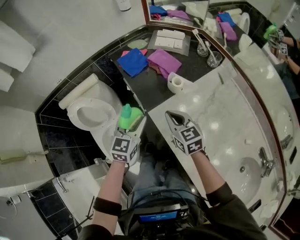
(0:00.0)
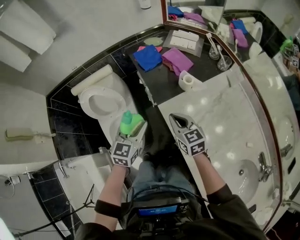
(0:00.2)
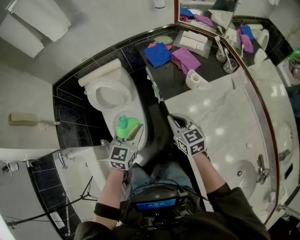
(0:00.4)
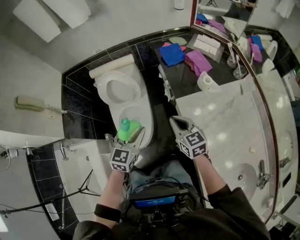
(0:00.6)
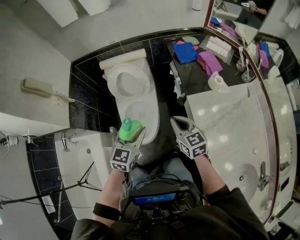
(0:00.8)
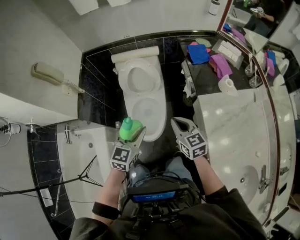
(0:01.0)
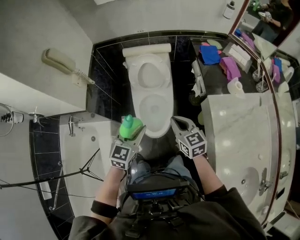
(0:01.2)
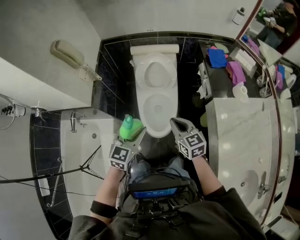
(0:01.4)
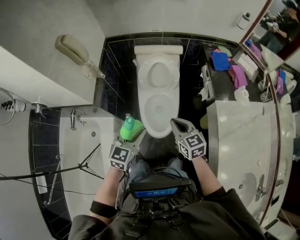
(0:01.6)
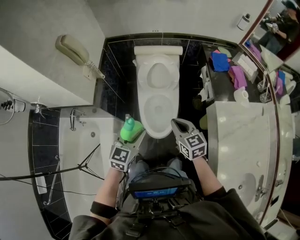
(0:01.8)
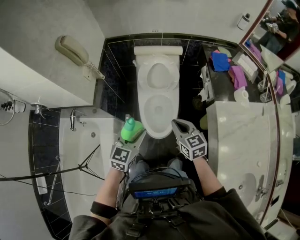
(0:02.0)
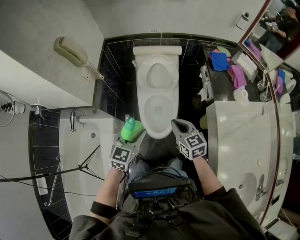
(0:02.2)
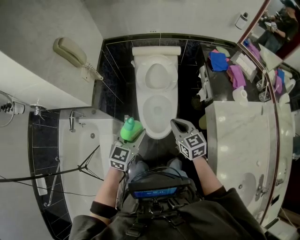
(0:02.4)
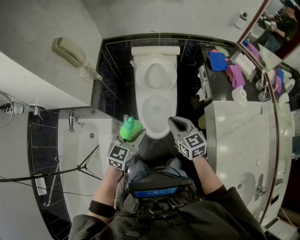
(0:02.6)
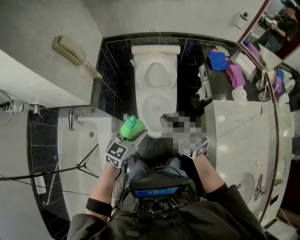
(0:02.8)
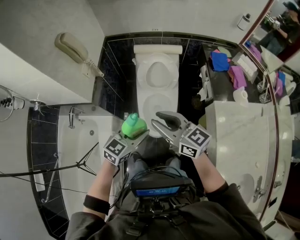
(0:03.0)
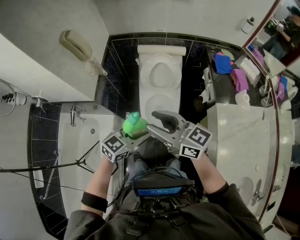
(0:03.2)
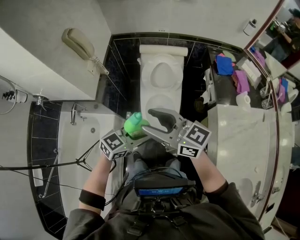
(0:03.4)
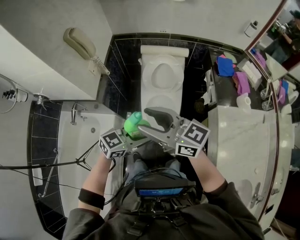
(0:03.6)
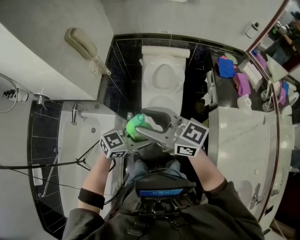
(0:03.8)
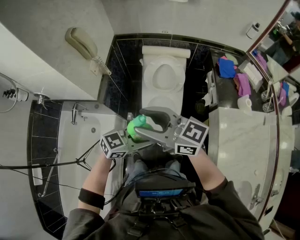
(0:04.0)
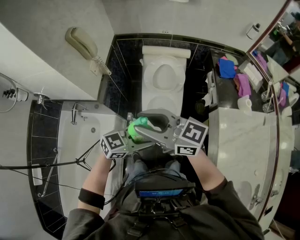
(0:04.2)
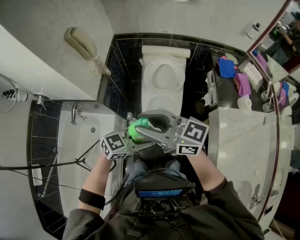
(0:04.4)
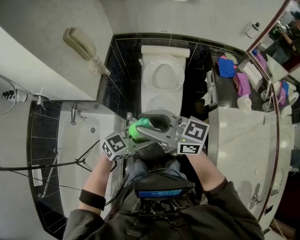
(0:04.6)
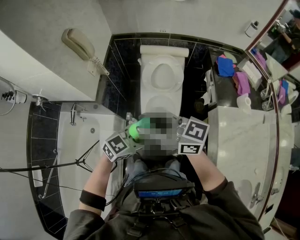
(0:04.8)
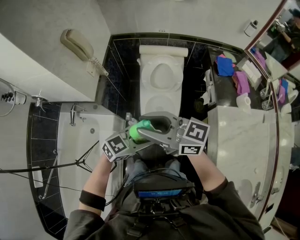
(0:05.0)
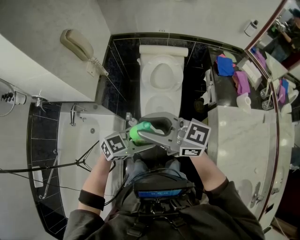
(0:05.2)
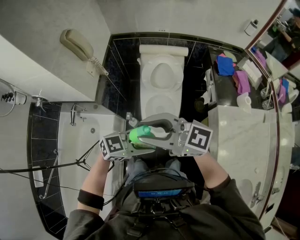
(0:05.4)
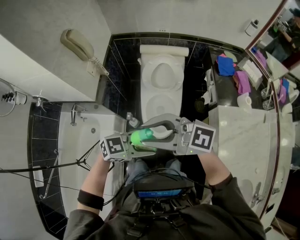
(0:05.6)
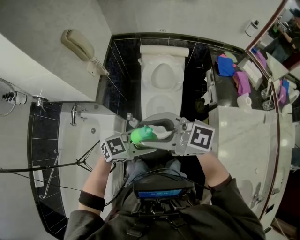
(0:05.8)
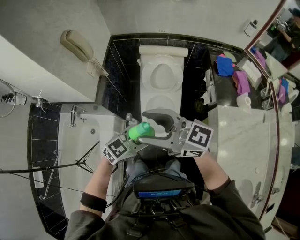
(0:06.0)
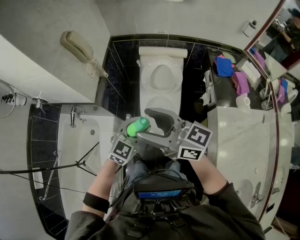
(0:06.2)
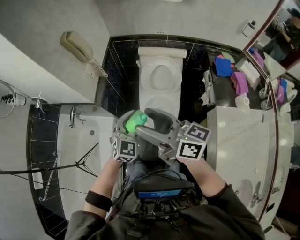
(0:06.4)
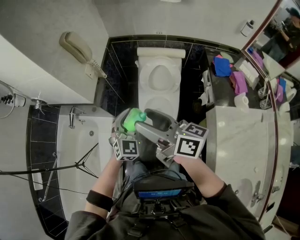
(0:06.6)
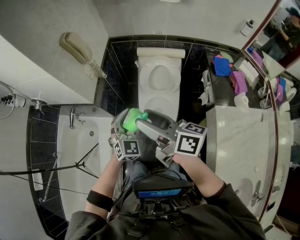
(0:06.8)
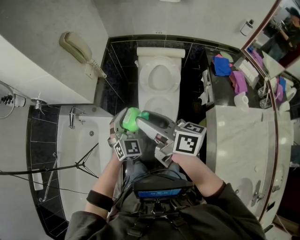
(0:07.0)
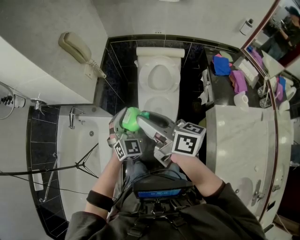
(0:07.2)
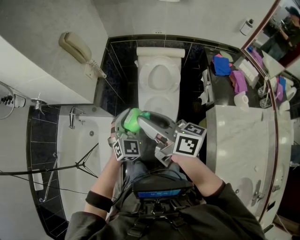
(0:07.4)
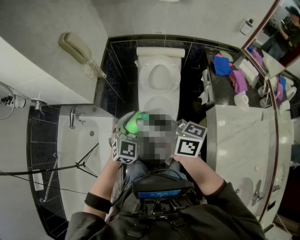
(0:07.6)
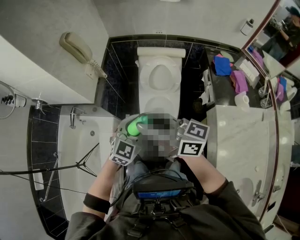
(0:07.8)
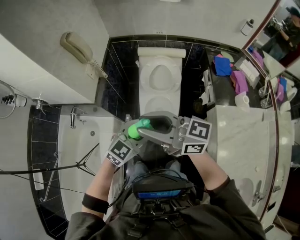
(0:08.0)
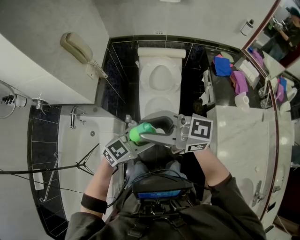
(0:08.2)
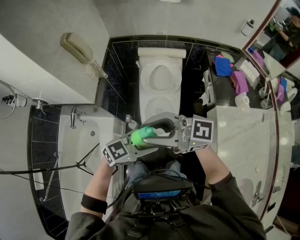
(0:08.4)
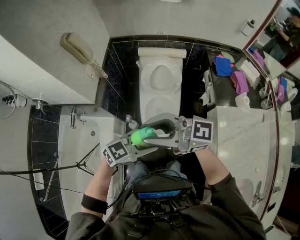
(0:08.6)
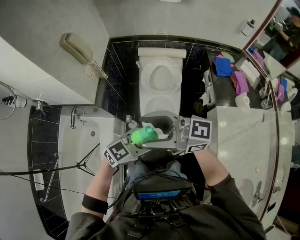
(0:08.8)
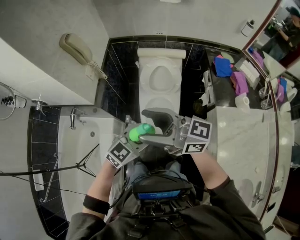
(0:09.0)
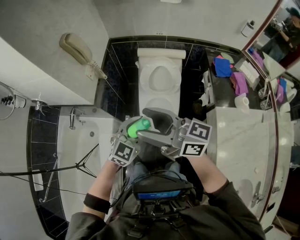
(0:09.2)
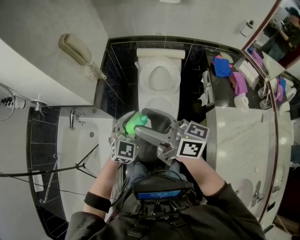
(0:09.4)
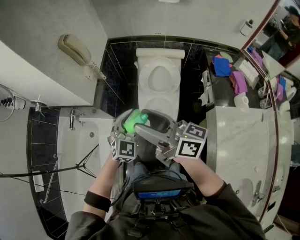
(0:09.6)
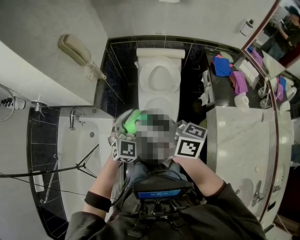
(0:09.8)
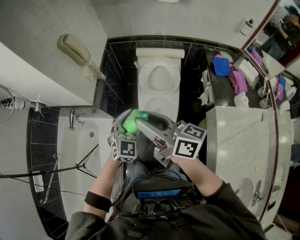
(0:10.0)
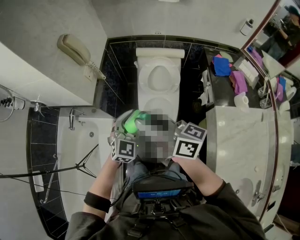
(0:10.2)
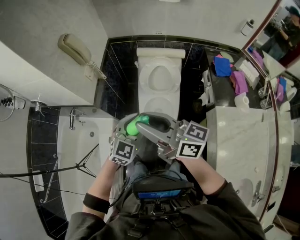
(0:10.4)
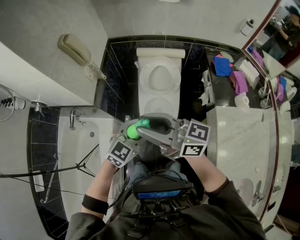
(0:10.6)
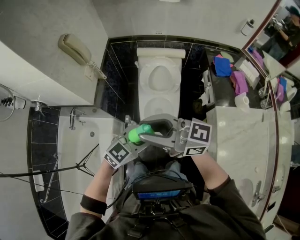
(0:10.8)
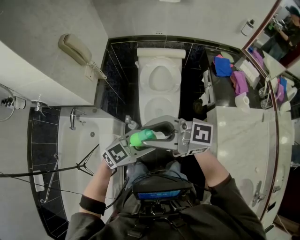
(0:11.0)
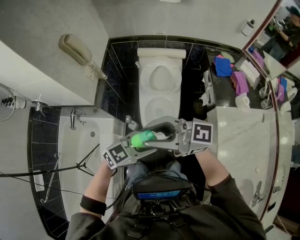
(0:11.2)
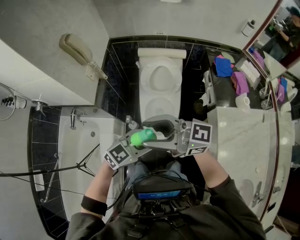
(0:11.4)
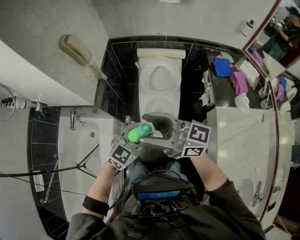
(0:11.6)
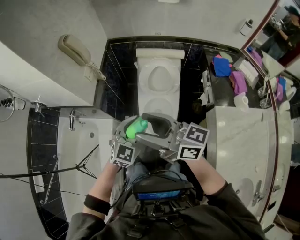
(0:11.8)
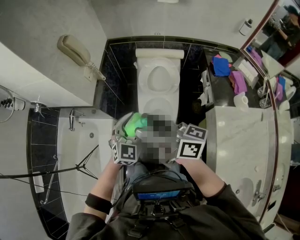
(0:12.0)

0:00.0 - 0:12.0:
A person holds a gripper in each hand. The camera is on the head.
0:00.0 - 0:01.6: The pair of grippers is taken approximately 50 cm. The right gripper rotates approximately 30 degrees; the left gripper rotates about 30 degrees.
0:01.6 - 0:03.0: The right gripper shifts some 15 cm upward and to the left, changes its angle by roughly 30 degrees, and opens its fingers.
0:03.0 - 0:04.4: The left gripper changes its angle by roughly 20 degrees; the right gripper moves roughly 10 cm, and changes its angle by some 20 degrees.
0:04.4 - 0:06.0: The right gripper opens its fingers.
0:06.0 - 0:07.6: The right gripper turns by some 30 degrees, and closes up. Meanwhile the left gripper shifts by roughly 10 cm, and turns by about 40 degrees.
0:07.6 - 0:09.0: The right gripper rotates some 20 degrees, and opens, while the left gripper changes its angle by about 30 degrees.
0:09.0 - 0:10.4: The left gripper turns by about 20 degrees, while the right gripper closes.
0:10.4 - 0:12.0: The right gripper opens its fingers.

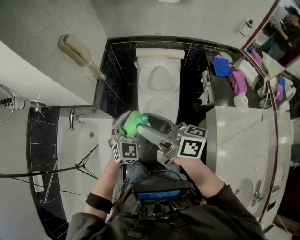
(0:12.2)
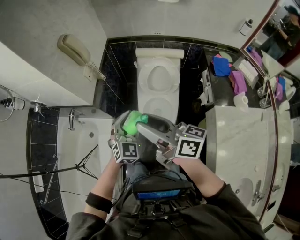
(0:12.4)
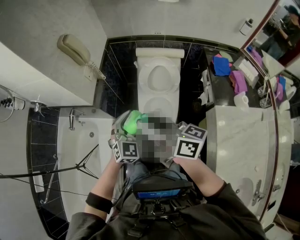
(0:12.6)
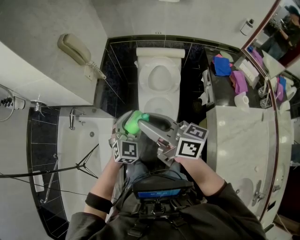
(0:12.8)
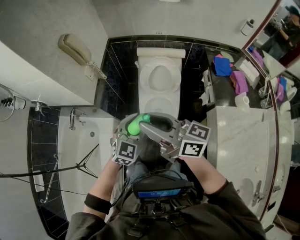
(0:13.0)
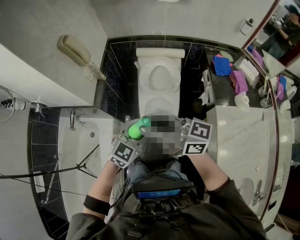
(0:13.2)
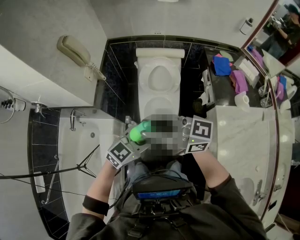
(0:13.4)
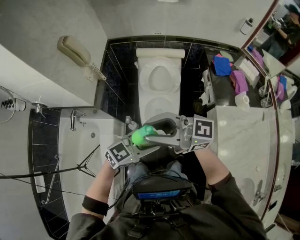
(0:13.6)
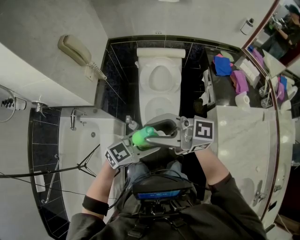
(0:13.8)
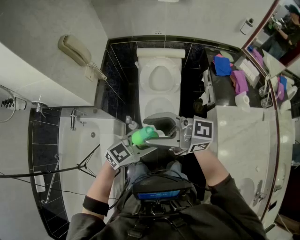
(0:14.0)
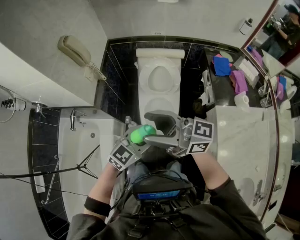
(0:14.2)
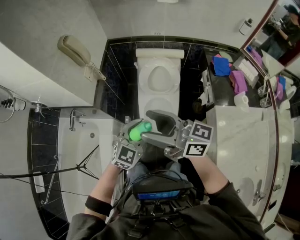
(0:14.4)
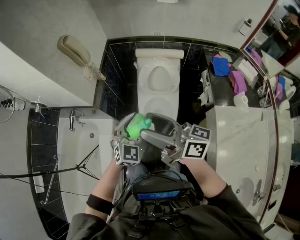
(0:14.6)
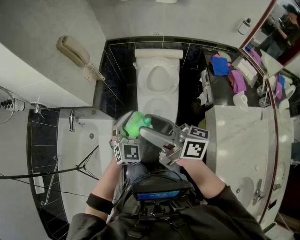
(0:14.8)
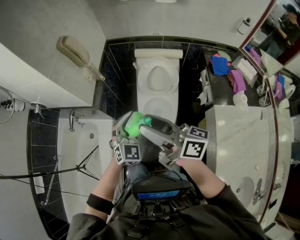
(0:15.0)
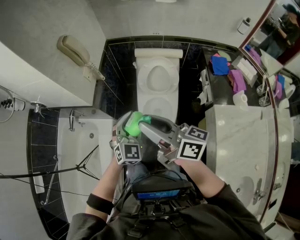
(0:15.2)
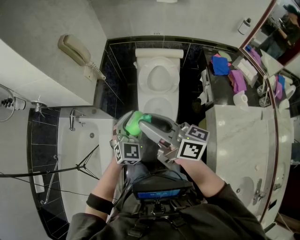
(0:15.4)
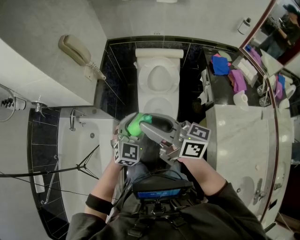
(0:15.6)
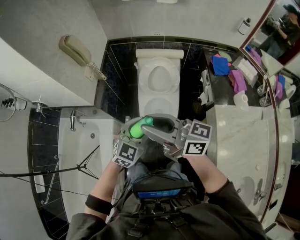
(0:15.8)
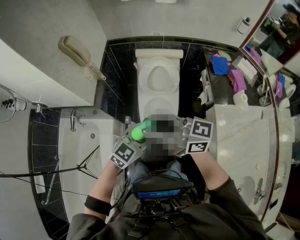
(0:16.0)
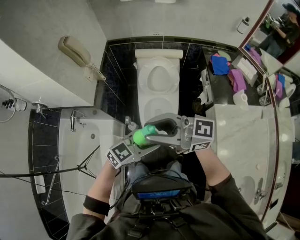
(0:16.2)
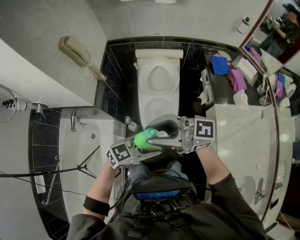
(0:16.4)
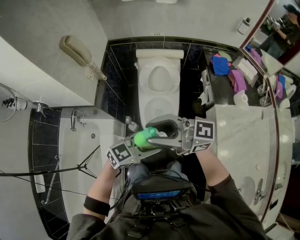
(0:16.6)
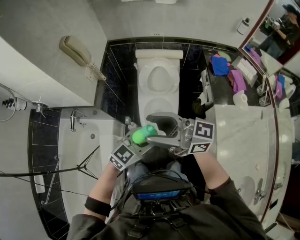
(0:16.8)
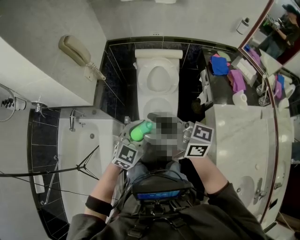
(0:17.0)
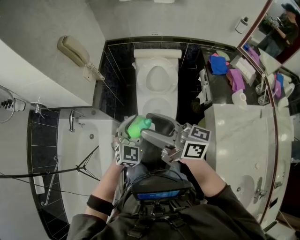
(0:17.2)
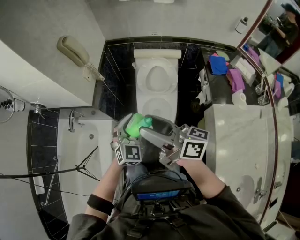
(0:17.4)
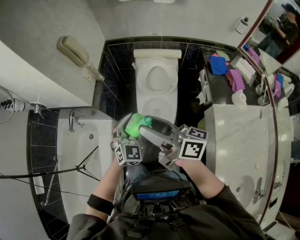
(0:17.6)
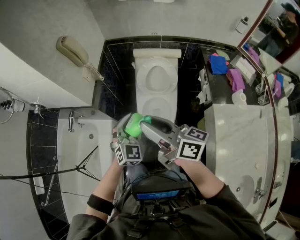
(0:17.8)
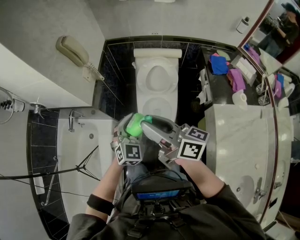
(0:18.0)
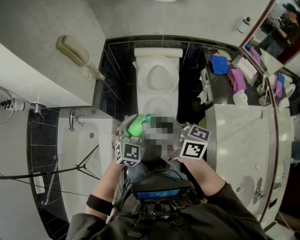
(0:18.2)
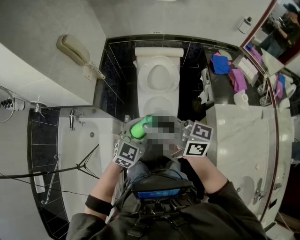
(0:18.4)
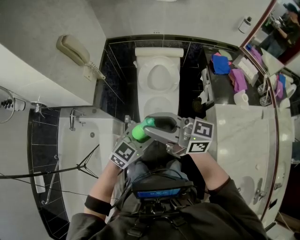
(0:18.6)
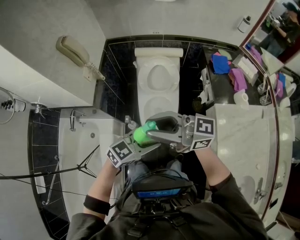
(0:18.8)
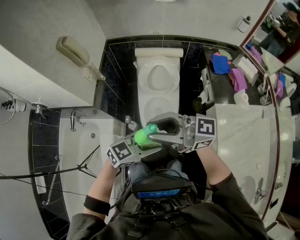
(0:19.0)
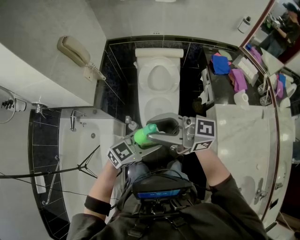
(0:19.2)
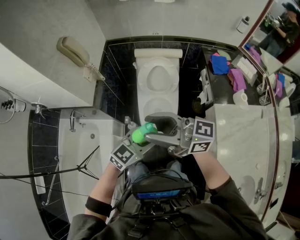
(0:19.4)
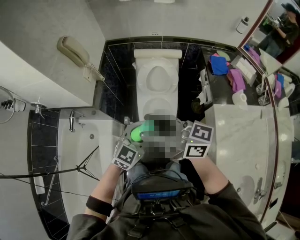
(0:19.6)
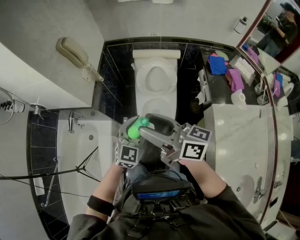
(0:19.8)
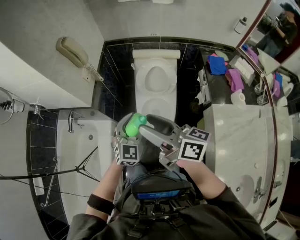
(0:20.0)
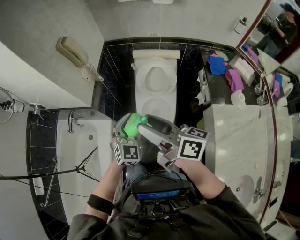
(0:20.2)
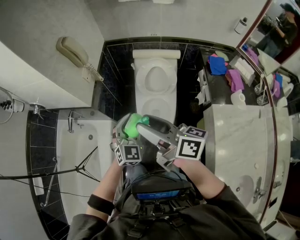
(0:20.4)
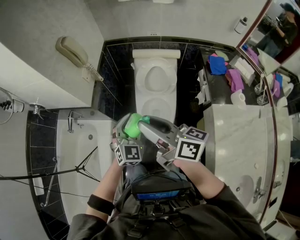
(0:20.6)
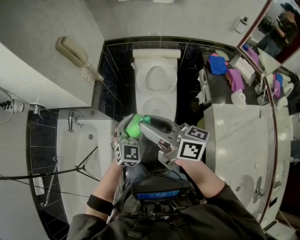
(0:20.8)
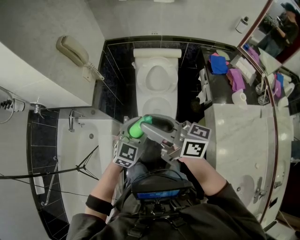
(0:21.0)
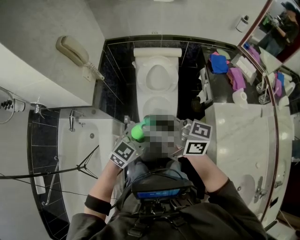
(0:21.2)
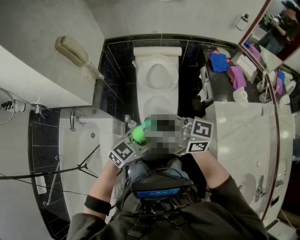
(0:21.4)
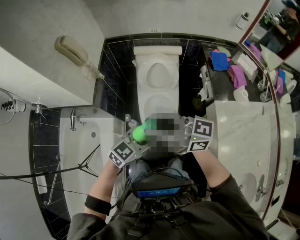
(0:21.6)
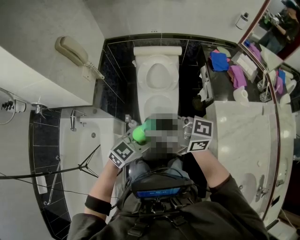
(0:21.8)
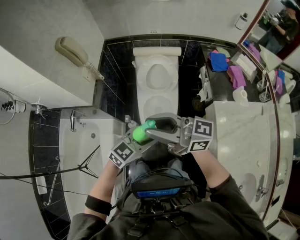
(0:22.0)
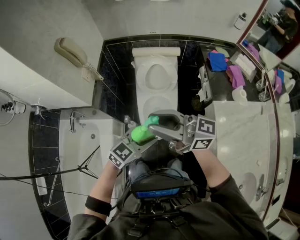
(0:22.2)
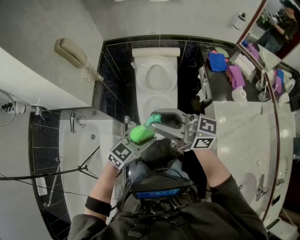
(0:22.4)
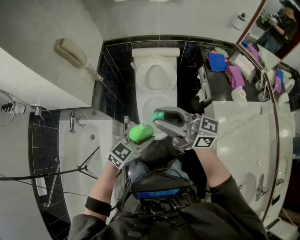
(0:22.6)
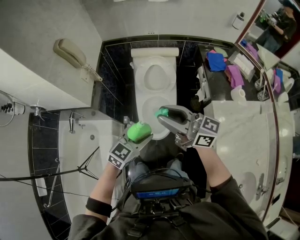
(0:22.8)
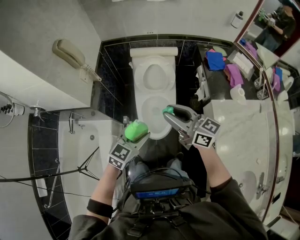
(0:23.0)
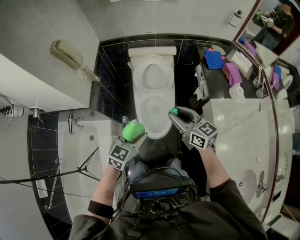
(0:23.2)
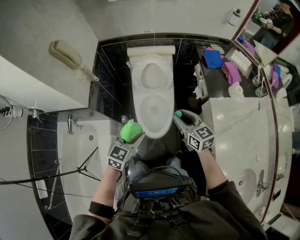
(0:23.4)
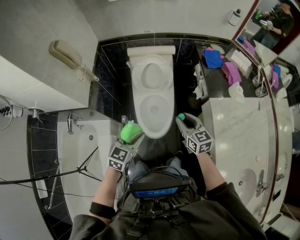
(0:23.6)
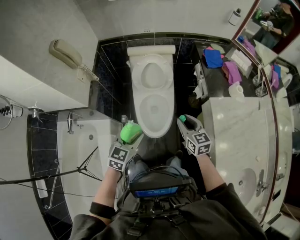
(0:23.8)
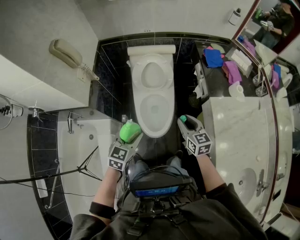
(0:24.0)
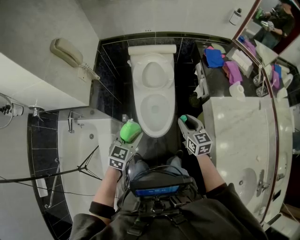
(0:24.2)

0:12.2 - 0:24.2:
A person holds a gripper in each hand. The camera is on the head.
0:12.2 - 0:13.8: The right gripper ends up about 5 cm from where it was, swivels roughly 40 degrees, and closes up; the left gripper moves roughly 15 cm, and changes its angle by some 60 degrees.
0:13.8 - 0:15.2: The left gripper ends up approximately 15 cm from where it was, and turns by some 60 degrees; the right gripper swivels approximately 40 degrees, and opens, then closes once more.
0:15.2 - 0:16.6: The left gripper changes place by about 15 cm, and changes its angle by about 60 degrees. Meanwhile the right gripper moves about 5 cm, and changes its angle by some 40 degrees.
0:16.6 - 0:18.2: The right gripper changes place by roughly 5 cm, changes its angle by roughly 30 degrees, and opens, then closes again; the left gripper moves about 15 cm, and turns by approximately 50 degrees.
0:18.2 - 0:19.8: The right gripper opens its fingers.
0:19.8 - 0:21.2: The right gripper closes up. Meanwhile the left gripper changes place by some 5 cm, and changes its angle by some 30 degrees.
0:21.2 - 0:22.6: The grippers move only a little.
0:22.6 - 0:24.2: The right gripper shifts approximately 25 cm downward and to the right, and angles its fingers downward, by some 40 degrees. The left gripper is displaced to the left by approximately 5 cm, and rotates approximately 20 degrees.
